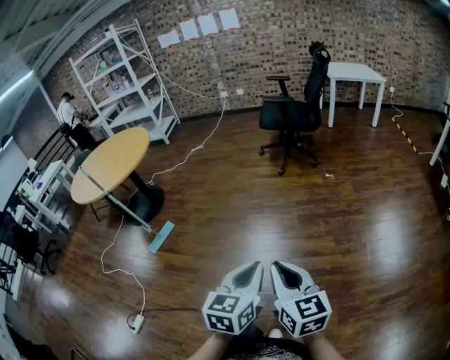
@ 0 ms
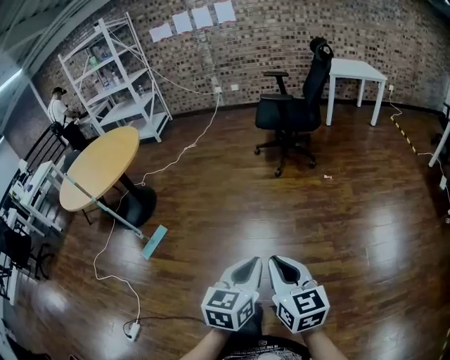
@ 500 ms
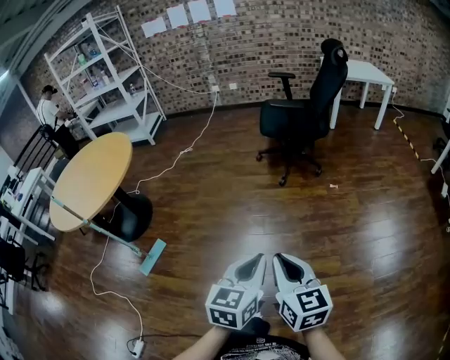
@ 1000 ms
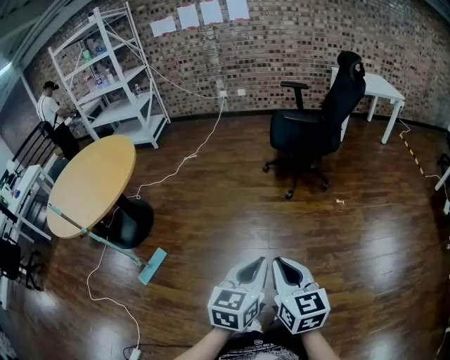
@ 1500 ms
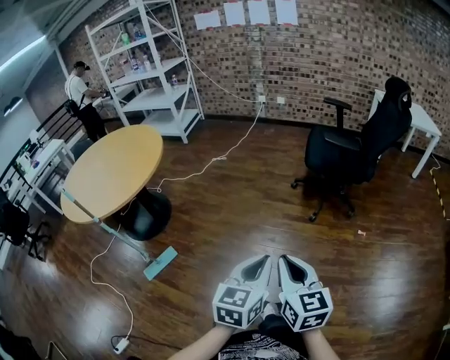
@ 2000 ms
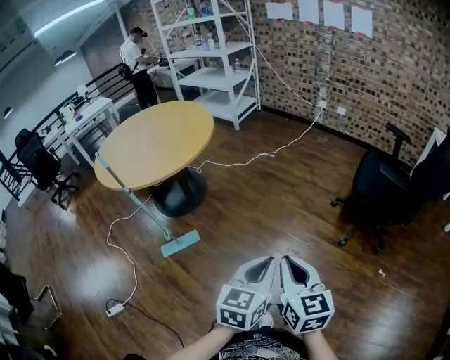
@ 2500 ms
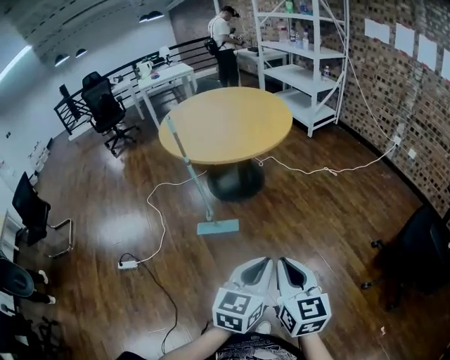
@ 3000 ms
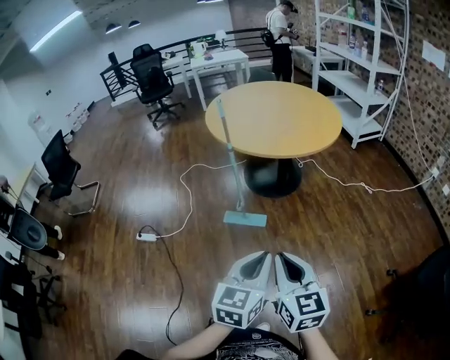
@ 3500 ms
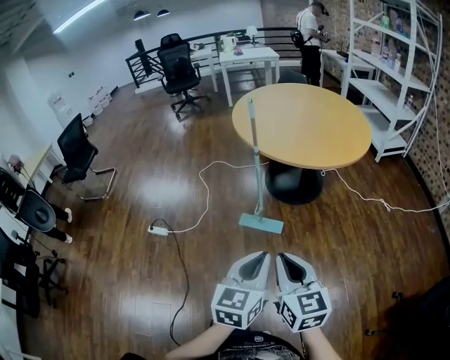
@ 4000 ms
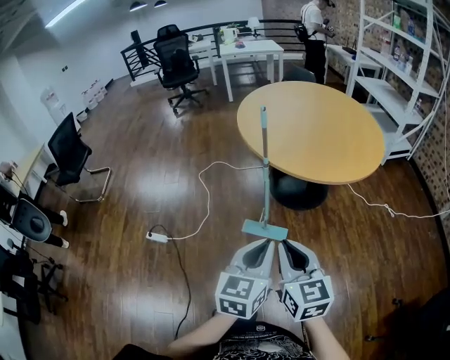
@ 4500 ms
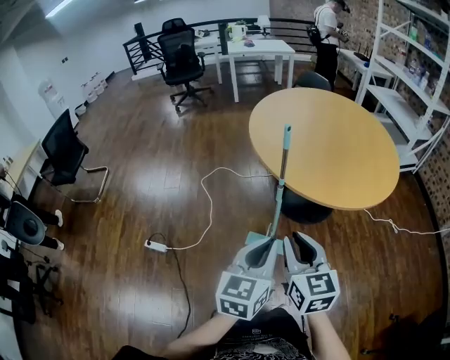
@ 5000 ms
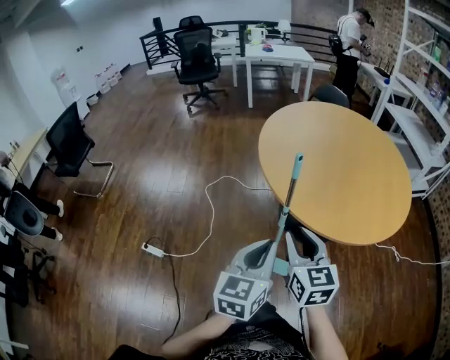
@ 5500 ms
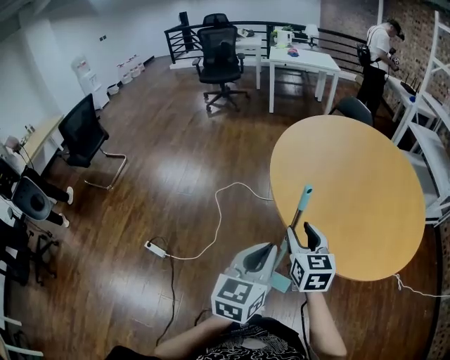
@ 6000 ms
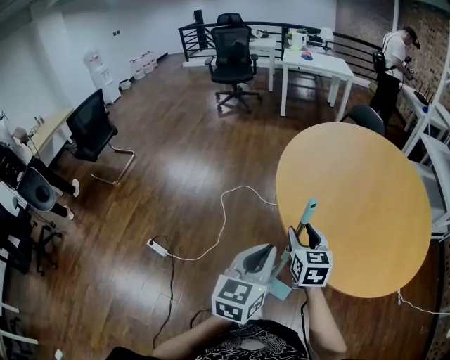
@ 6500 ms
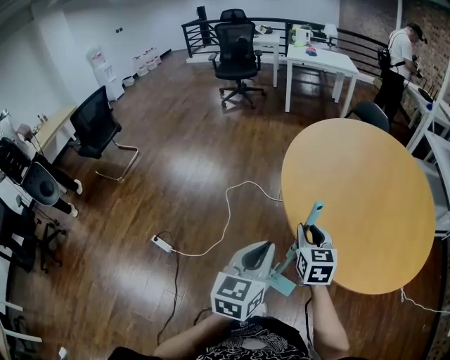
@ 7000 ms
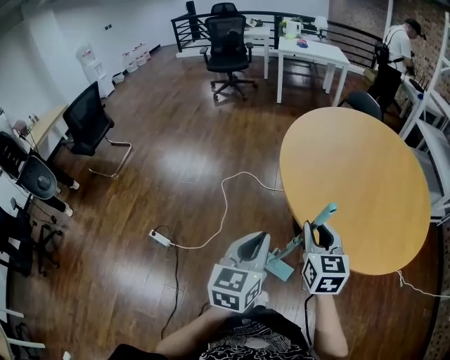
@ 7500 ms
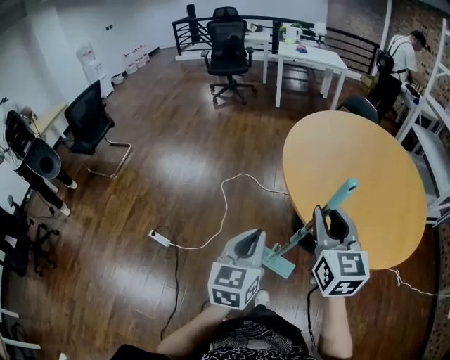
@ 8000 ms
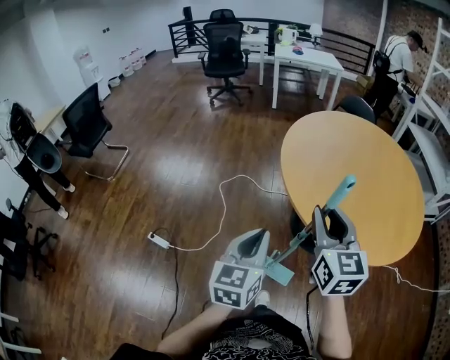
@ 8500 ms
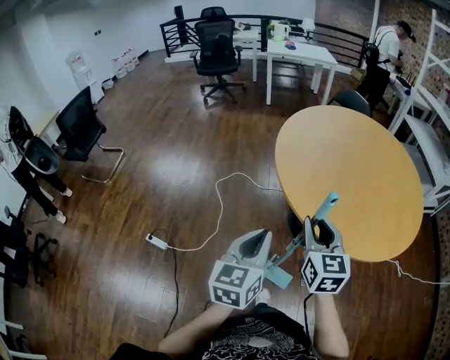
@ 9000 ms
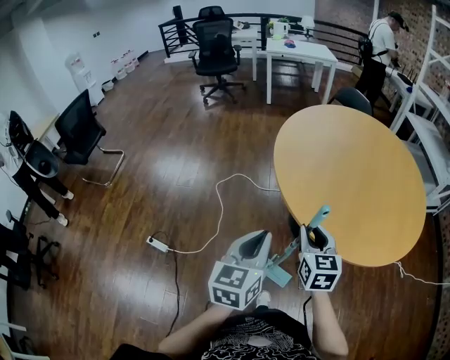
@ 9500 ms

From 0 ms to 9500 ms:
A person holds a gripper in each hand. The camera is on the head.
From 0 ms to 2000 ms: The two grippers travel together, forward, some 50 cm.
From 2000 ms to 4000 ms: The right gripper ends up some 35 cm from where it was, and changes its angle by roughly 70 degrees. The left gripper ends up roughly 35 cm from where it was, and turns by roughly 70 degrees.
From 4000 ms to 5500 ms: Both grippers move forward, roughly 40 cm. The right gripper opens its fingers.
From 5500 ms to 7500 ms: The two grippers go approximately 10 cm forward. The right gripper opens, then closes once more.
From 7500 ms to 9500 ms: The right gripper moves some 10 cm upward and comes back.

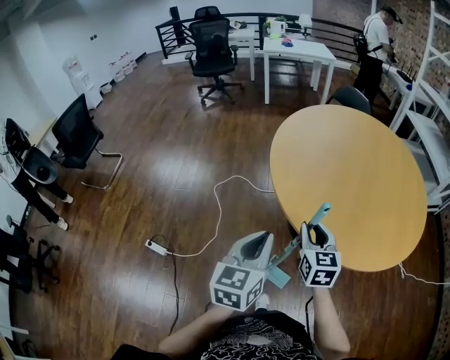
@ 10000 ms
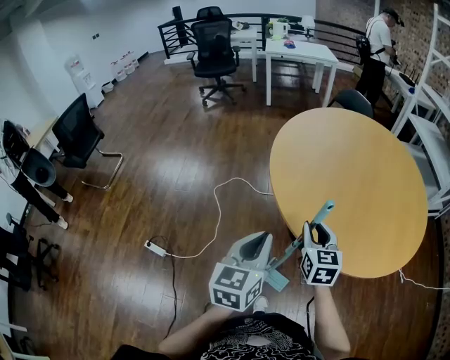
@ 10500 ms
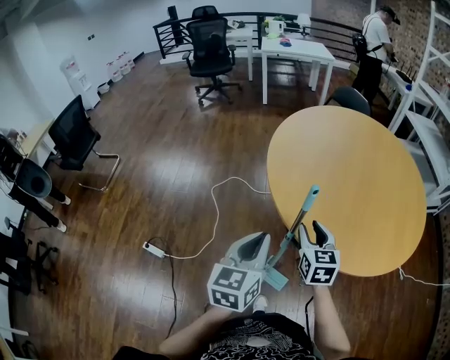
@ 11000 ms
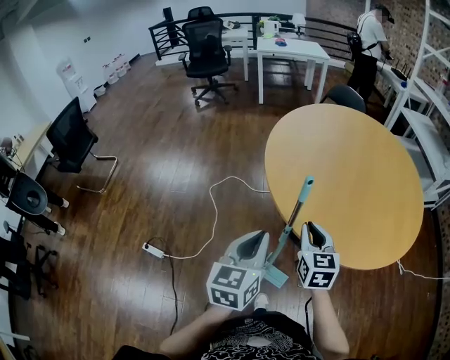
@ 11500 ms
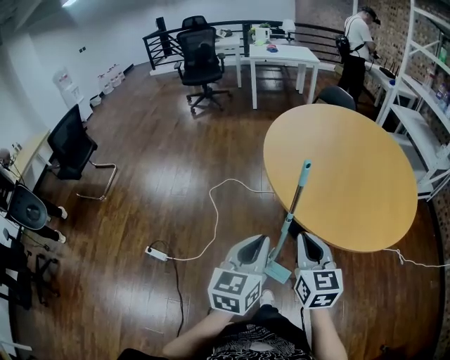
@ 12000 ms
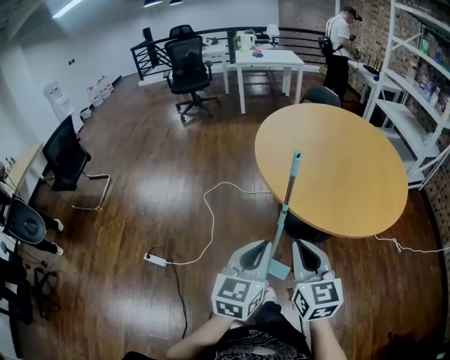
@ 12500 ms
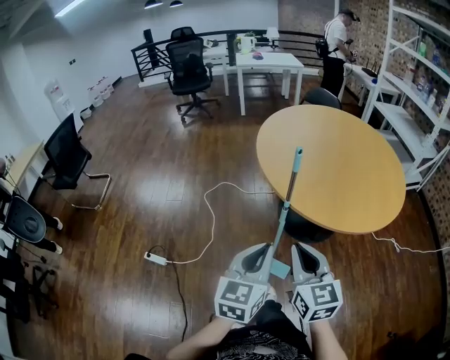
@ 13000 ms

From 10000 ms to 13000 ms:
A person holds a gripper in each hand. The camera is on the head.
From 10000 ms to 11500 ms: The grippers stay close to where they were, moving slightly.
From 11500 ms to 13000 ms: Both grippers move backward, roughly 20 cm.

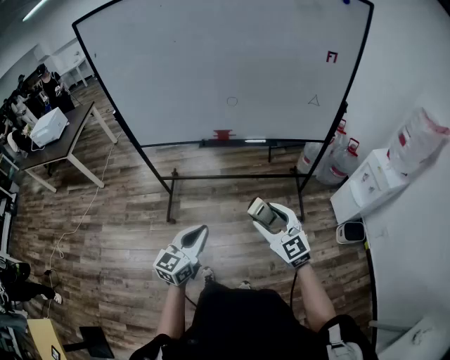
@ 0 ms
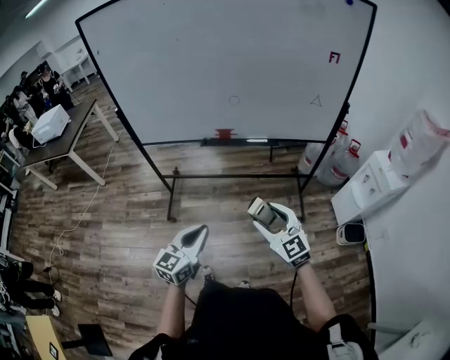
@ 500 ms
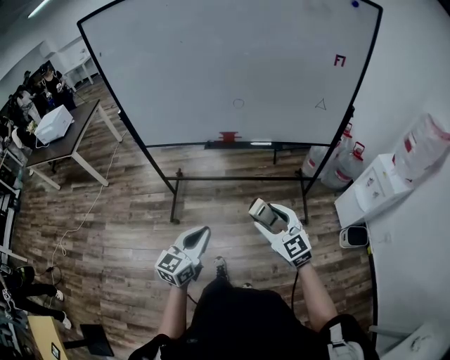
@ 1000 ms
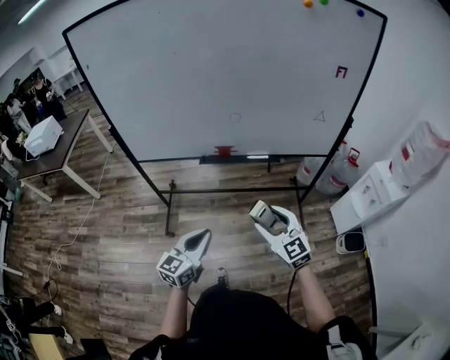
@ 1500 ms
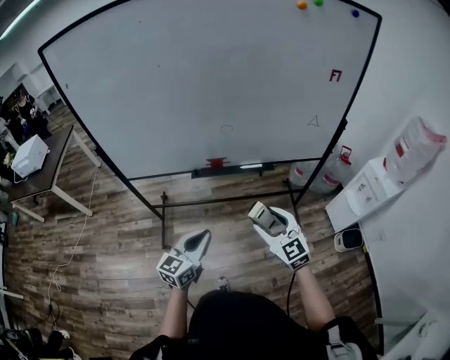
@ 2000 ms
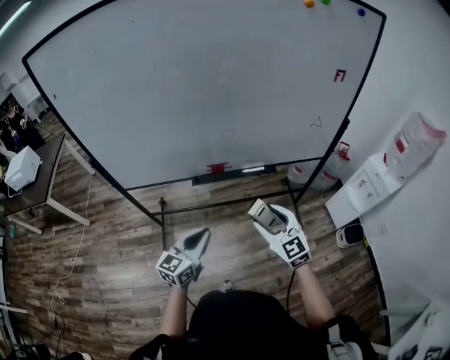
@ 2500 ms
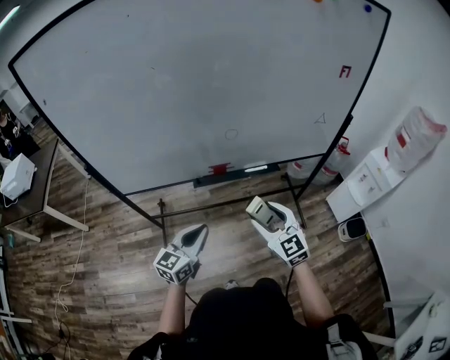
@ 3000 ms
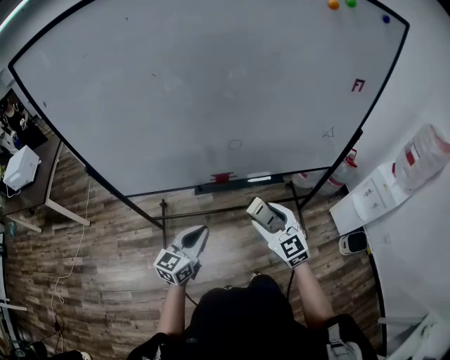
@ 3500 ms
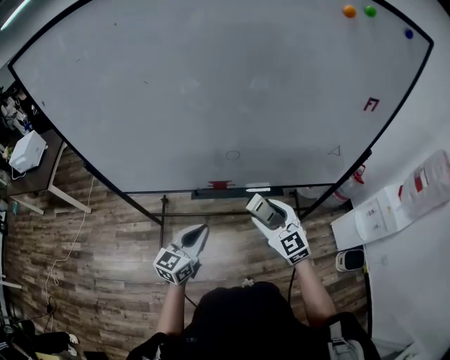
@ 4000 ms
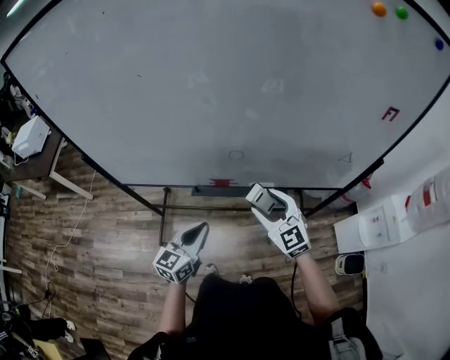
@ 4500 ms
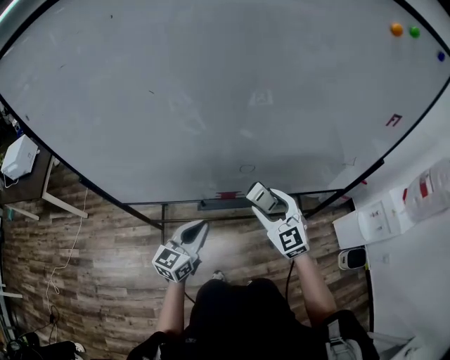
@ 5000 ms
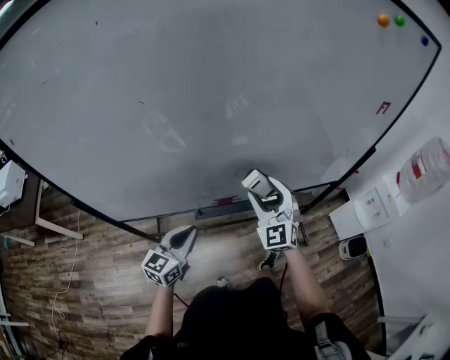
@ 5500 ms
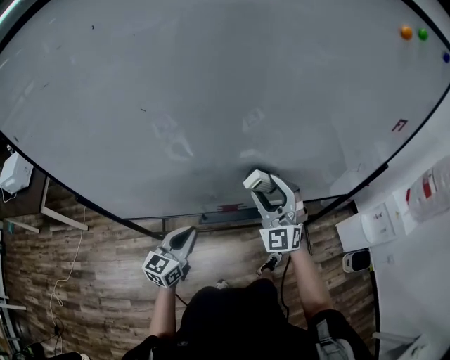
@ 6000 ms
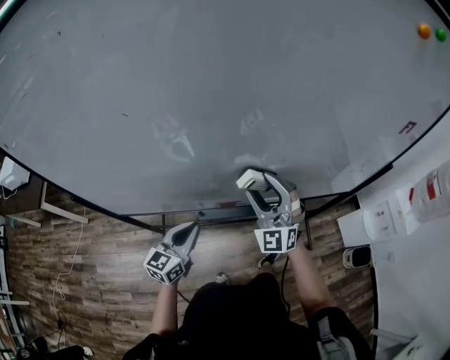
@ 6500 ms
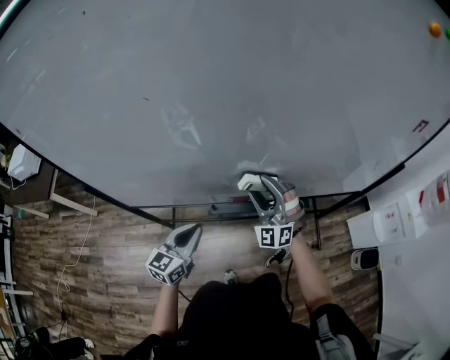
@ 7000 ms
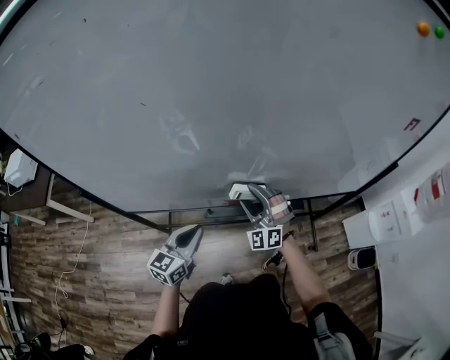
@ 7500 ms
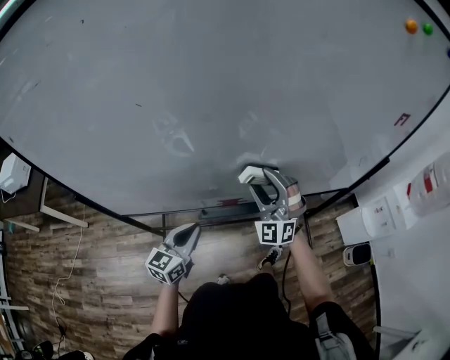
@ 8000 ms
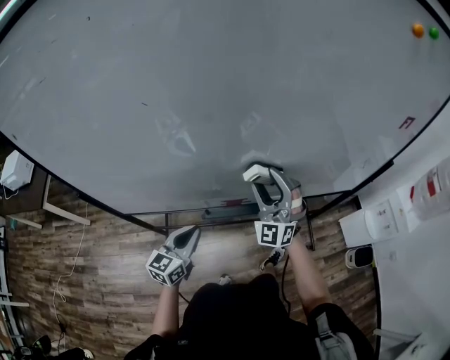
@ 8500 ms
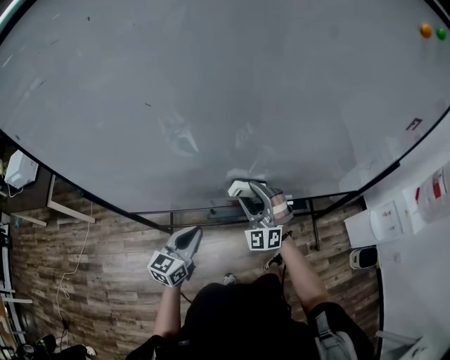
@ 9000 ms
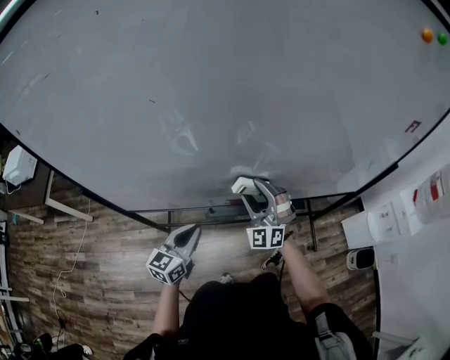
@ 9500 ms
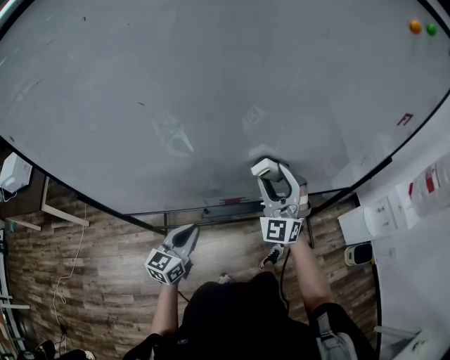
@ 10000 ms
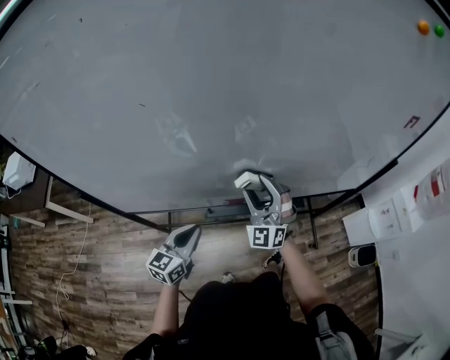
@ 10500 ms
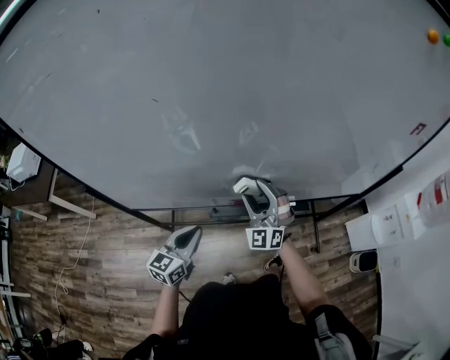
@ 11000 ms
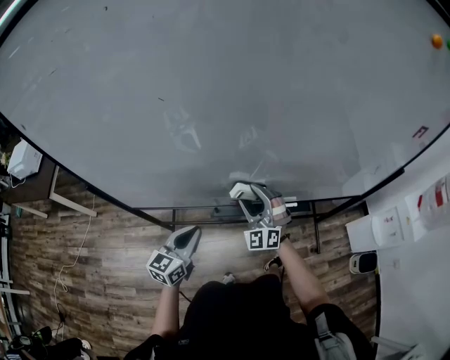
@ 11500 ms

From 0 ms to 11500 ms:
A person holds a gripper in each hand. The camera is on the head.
From 0 ms to 2000 ms: Both grippers move forward, approximately 15 cm.
From 2000 ms to 4000 ms: The two grippers go approximately 20 cm forward.
From 4000 ms to 6000 ms: The right gripper travels forward, to the left and upward by some 20 cm, and changes its angle by approximately 40 degrees; the left gripper heads forward and to the left, covering approximately 15 cm.
From 6000 ms to 7500 ms: The right gripper shifts some 15 cm downward and to the left.
From 9500 ms to 11500 ms: The right gripper reaches some 10 cm upward, then returns.

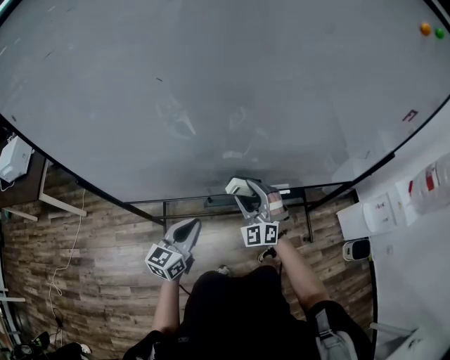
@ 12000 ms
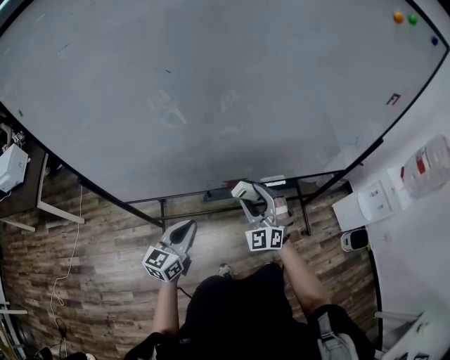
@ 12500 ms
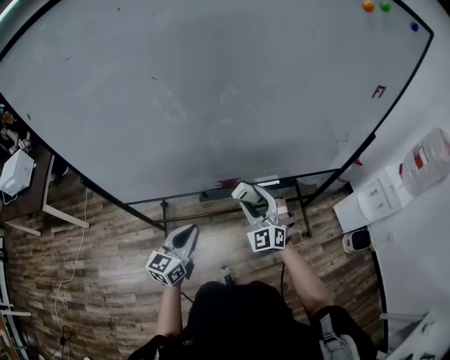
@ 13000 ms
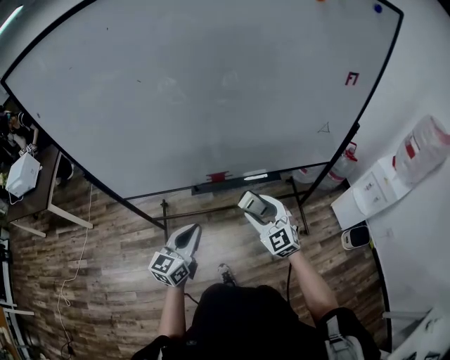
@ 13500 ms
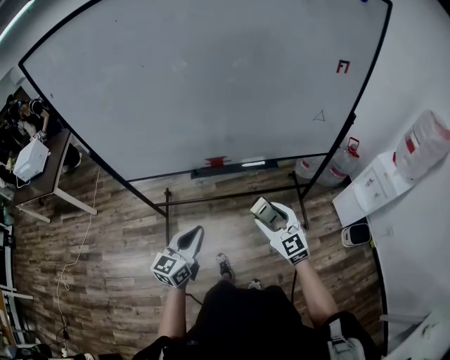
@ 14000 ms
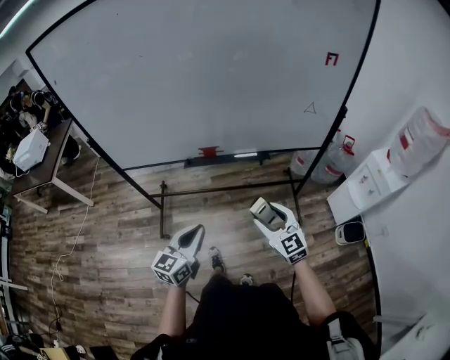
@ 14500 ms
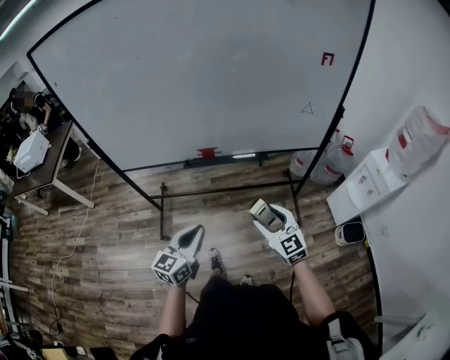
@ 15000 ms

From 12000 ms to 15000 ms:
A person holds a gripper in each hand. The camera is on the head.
From 12000 ms to 13500 ms: The left gripper travels backward, to the right and upward by about 15 cm. The right gripper goes about 20 cm backward and to the right, and changes its angle by roughly 30 degrees.
From 13500 ms to 15000 ms: Both grippers move backward and to the right, roughly 20 cm.
